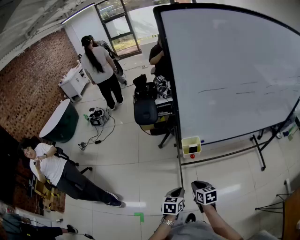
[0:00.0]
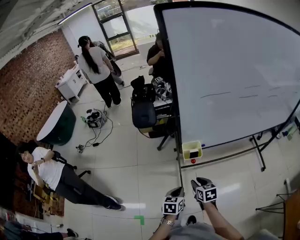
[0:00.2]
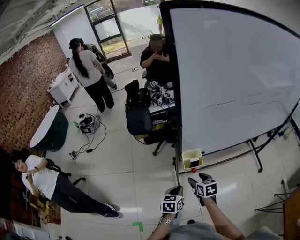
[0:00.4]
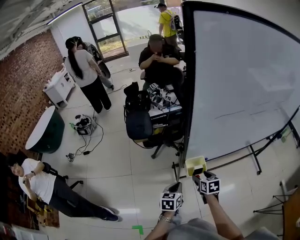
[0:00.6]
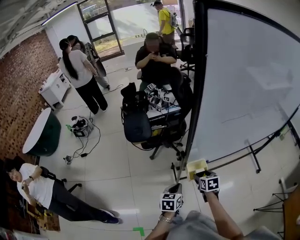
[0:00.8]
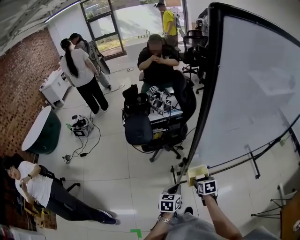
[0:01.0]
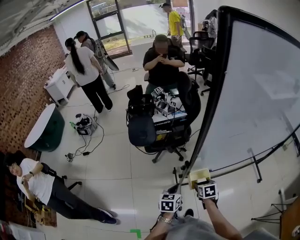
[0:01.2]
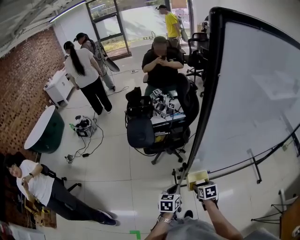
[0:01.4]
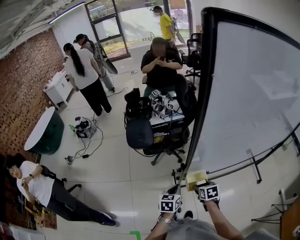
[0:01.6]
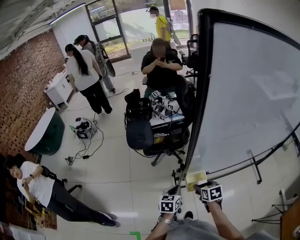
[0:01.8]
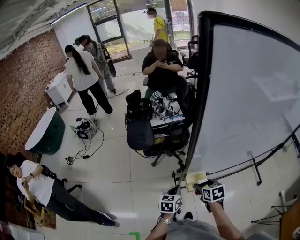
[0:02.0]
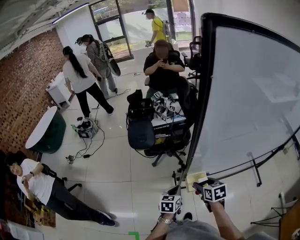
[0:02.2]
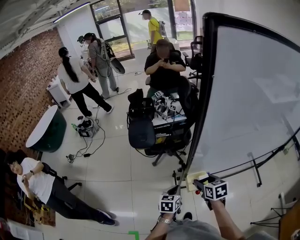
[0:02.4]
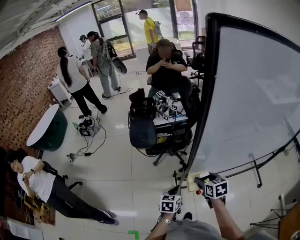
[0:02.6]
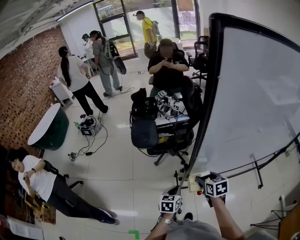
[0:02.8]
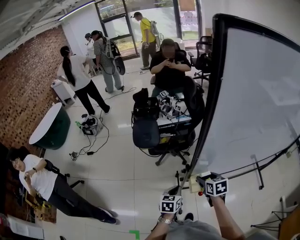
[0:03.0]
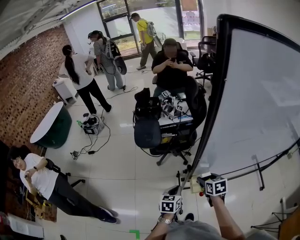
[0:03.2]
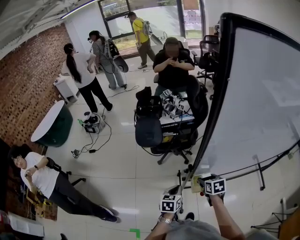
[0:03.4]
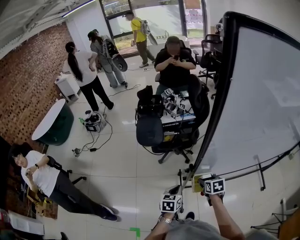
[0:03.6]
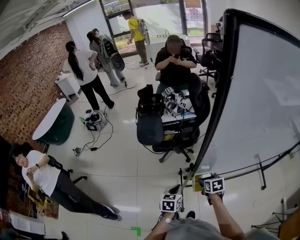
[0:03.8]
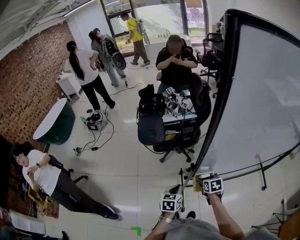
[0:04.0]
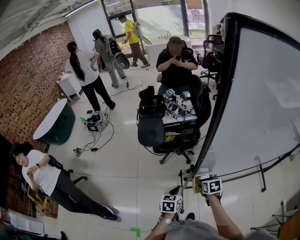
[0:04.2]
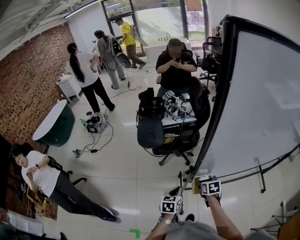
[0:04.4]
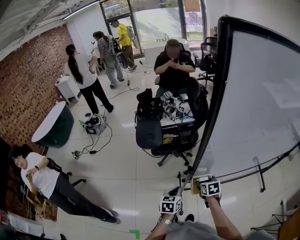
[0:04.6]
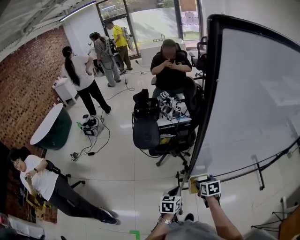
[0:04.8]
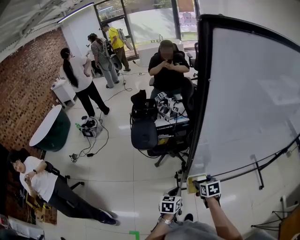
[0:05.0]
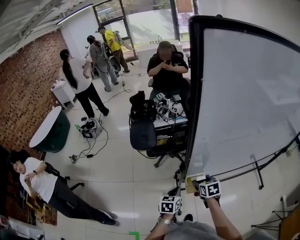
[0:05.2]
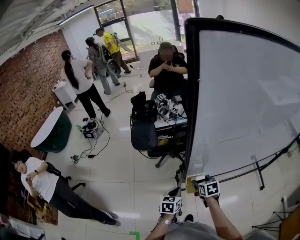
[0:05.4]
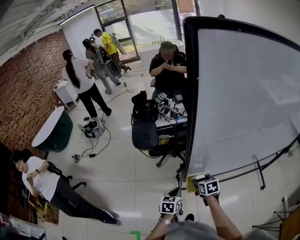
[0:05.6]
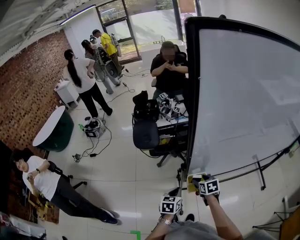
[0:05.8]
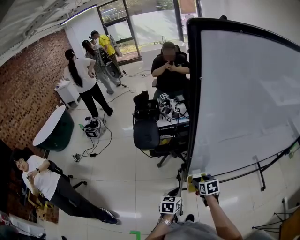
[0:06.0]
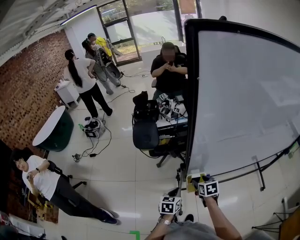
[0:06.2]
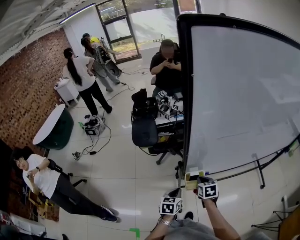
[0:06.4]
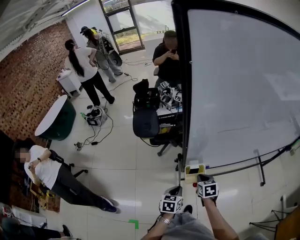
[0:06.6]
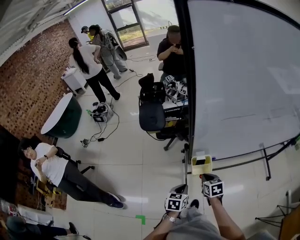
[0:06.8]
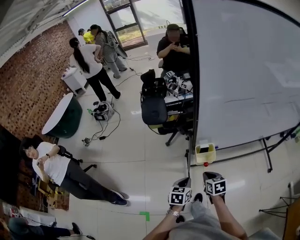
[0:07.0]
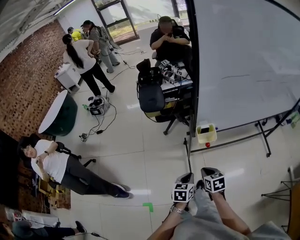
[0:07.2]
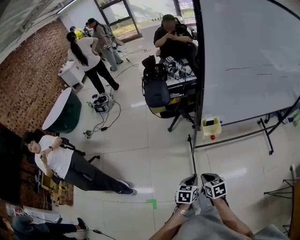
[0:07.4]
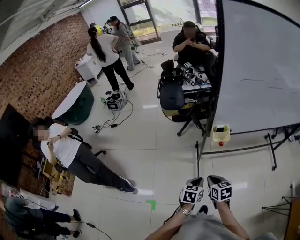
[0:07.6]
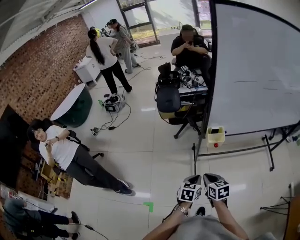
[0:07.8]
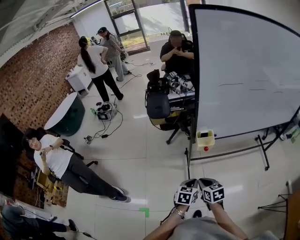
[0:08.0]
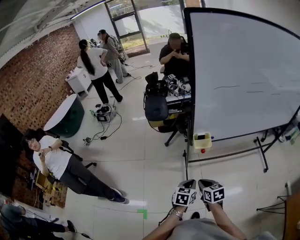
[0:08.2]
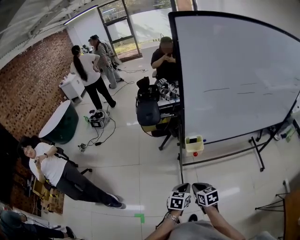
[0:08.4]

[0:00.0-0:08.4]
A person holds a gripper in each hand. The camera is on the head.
0.0 to 1.4 s: Both grippers move forward, about 25 cm. The right gripper opens.
1.4 to 2.8 s: The right gripper goes about 10 cm upward.
2.8 to 4.2 s: The right gripper goes approximately 10 cm downward.
4.2 to 5.6 s: There are only small adjustments of the grippers.
5.6 to 7.0 s: Both grippers travel together backward, about 15 cm. The right gripper closes.
7.0 to 8.4 s: Both grippers travel together backward, roughly 15 cm.

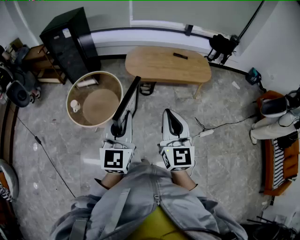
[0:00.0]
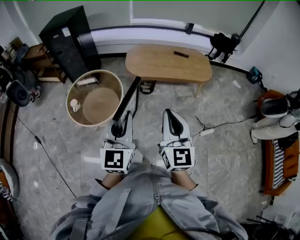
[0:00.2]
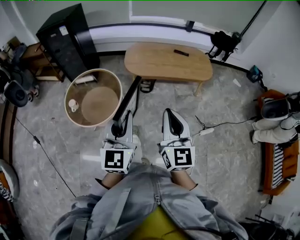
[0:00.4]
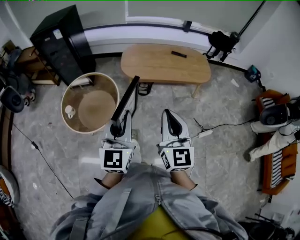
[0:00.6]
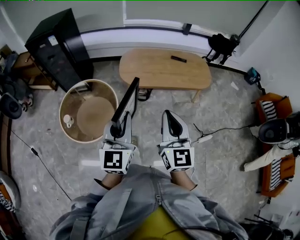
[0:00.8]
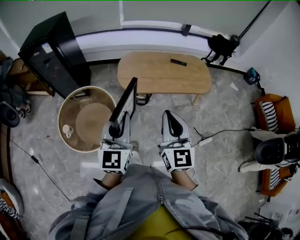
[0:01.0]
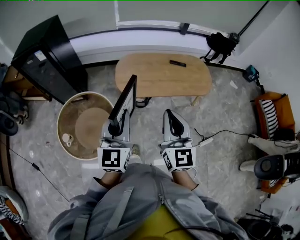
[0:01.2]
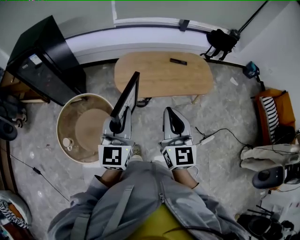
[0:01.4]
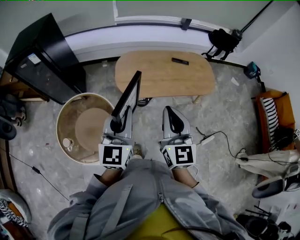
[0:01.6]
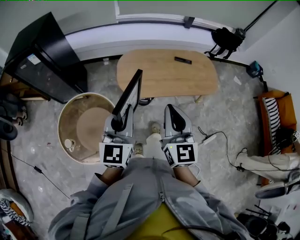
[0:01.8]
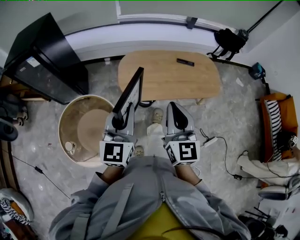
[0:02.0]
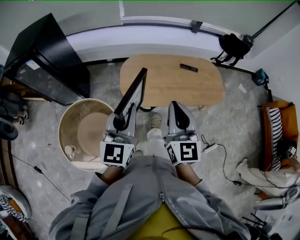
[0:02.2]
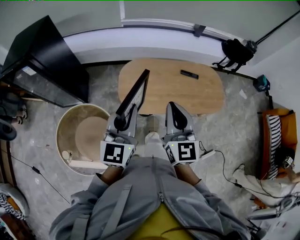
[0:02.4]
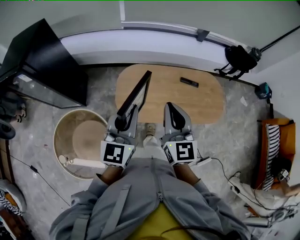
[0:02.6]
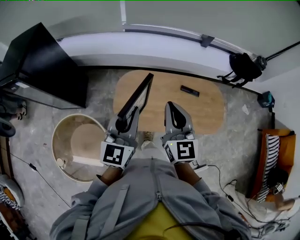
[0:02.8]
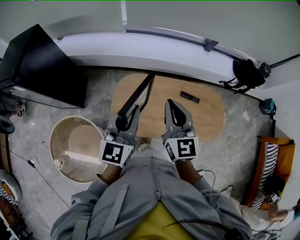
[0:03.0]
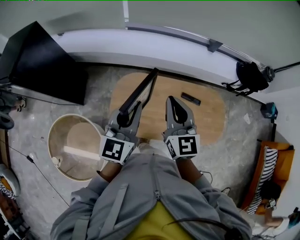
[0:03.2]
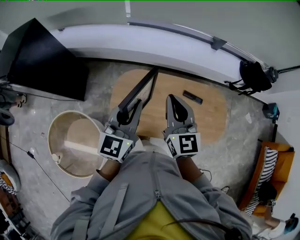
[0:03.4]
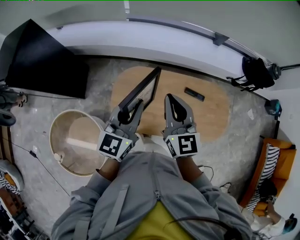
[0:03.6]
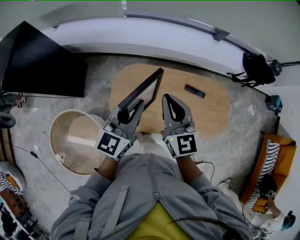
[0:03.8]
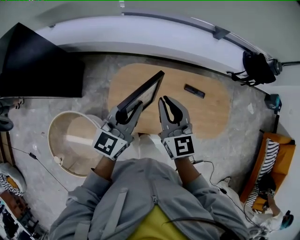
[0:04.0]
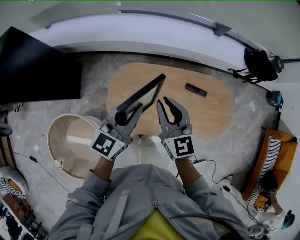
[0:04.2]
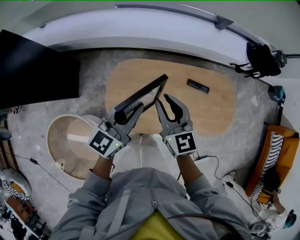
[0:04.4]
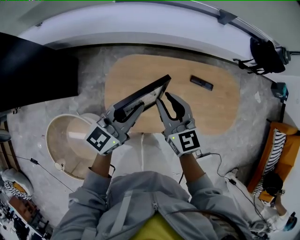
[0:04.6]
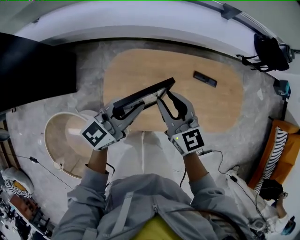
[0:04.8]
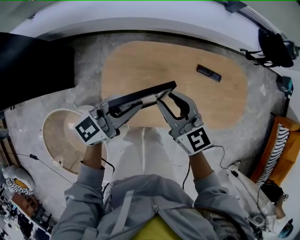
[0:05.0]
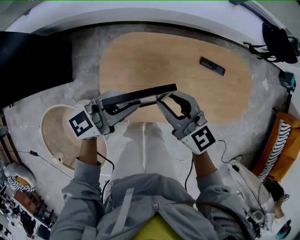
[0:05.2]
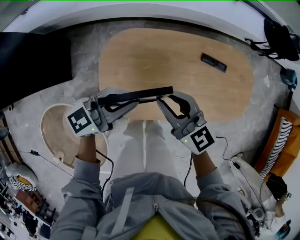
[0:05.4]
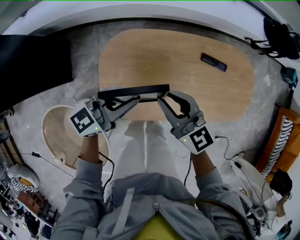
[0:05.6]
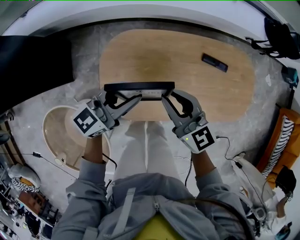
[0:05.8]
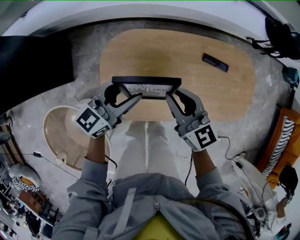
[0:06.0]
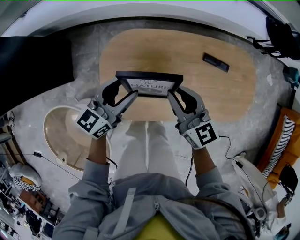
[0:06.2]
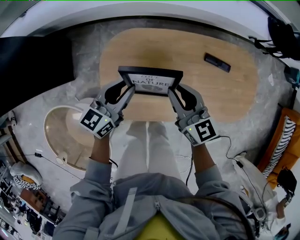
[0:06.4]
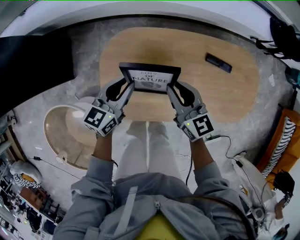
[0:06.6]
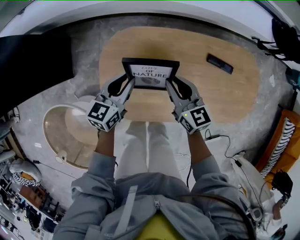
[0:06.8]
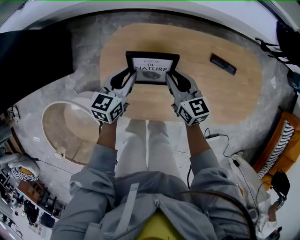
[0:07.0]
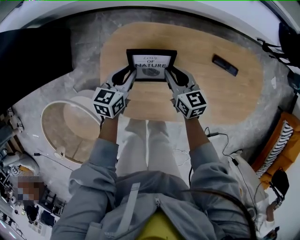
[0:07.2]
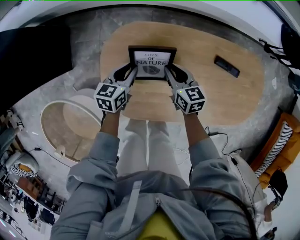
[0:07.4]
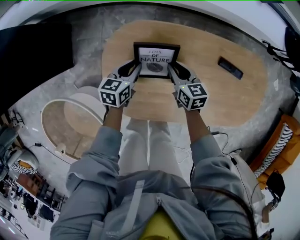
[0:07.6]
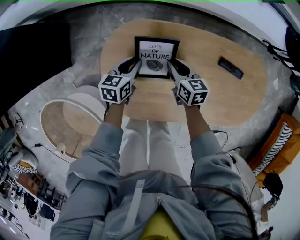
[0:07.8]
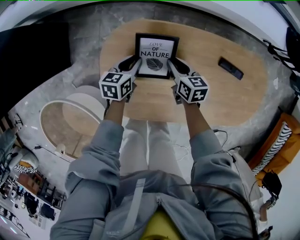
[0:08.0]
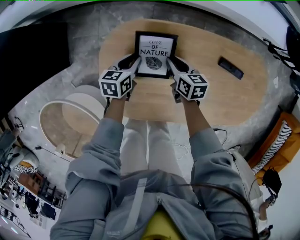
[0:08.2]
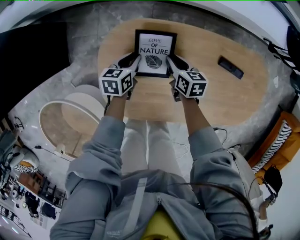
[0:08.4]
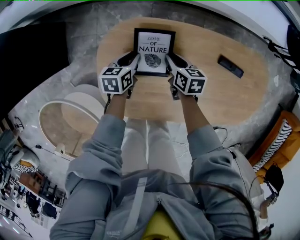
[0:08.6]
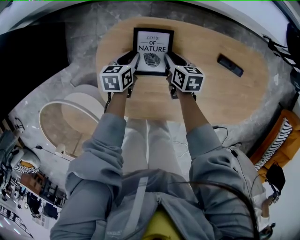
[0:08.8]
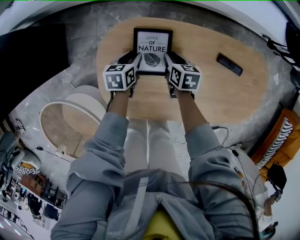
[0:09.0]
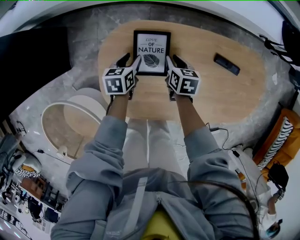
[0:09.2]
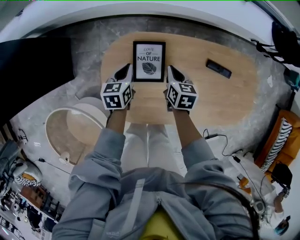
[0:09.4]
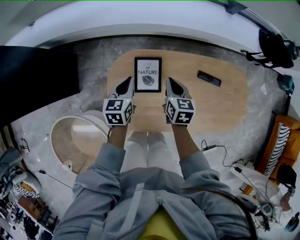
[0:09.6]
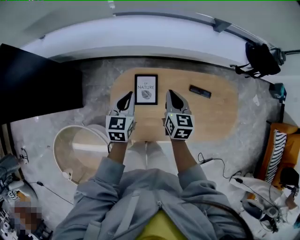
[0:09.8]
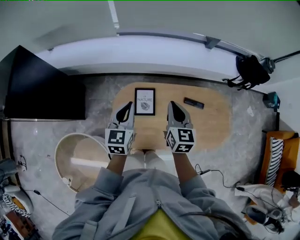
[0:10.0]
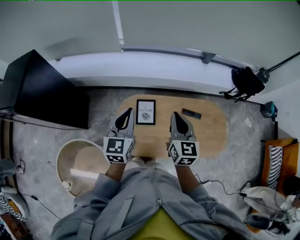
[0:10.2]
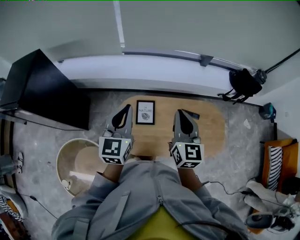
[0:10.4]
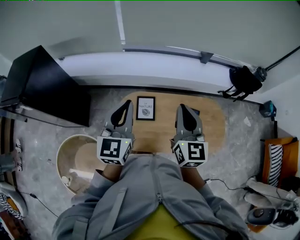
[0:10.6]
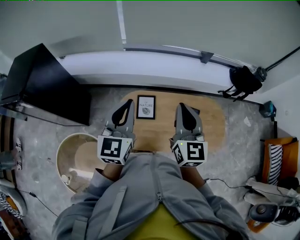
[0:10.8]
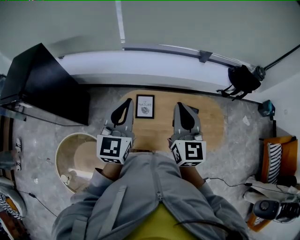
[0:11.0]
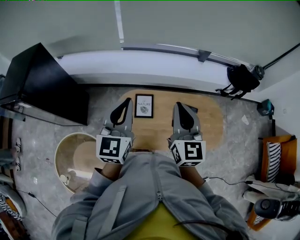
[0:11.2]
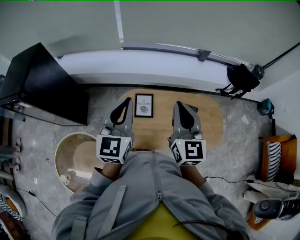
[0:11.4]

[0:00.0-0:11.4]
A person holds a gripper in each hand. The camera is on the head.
0.0 to 1.4 s: The two grippers go roughly 35 cm forward.
1.4 to 2.8 s: Both grippers move forward, approximately 40 cm.
2.8 to 4.2 s: Both grippers move forward and downward, some 20 cm.
4.2 to 5.6 s: Both grippers move downward, roughly 15 cm. The left gripper swivels approximately 30 degrees.
5.6 to 7.2 s: The grippers both shift downward by approximately 20 cm. The right gripper turns by some 20 degrees; the left gripper angles its fingers downward, by approximately 30 degrees, and opens, then closes once more.
7.2 to 8.6 s: Both grippers move downward, approximately 10 cm. The right gripper turns by approximately 20 degrees.
8.6 to 10.0 s: The grippers both shift upward by roughly 40 cm. The right gripper turns by roughly 40 degrees, and closes up. Meanwhile the left gripper turns by about 40 degrees, and closes up.
10.0 to 11.4 s: The grippers both shift upward and backward by about 25 cm. The right gripper swivels approximately 20 degrees.

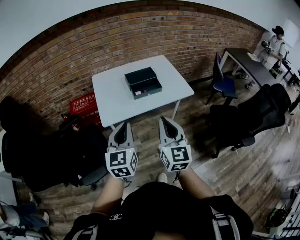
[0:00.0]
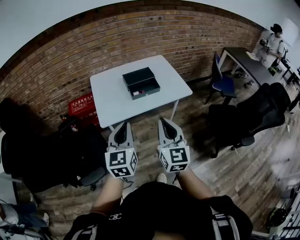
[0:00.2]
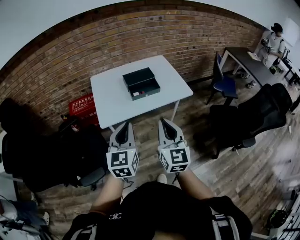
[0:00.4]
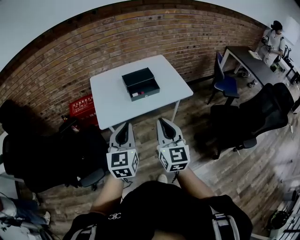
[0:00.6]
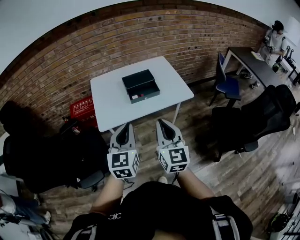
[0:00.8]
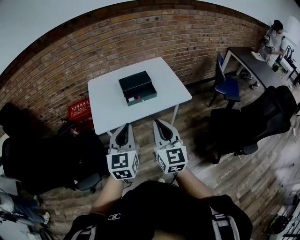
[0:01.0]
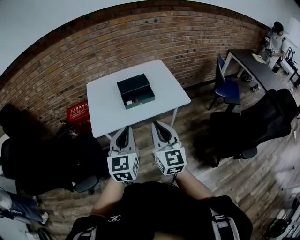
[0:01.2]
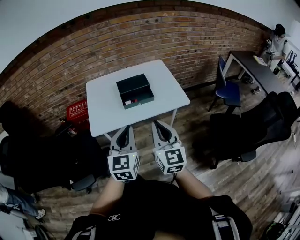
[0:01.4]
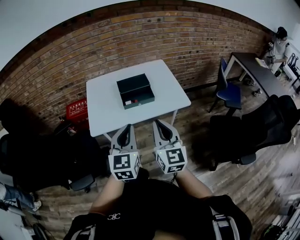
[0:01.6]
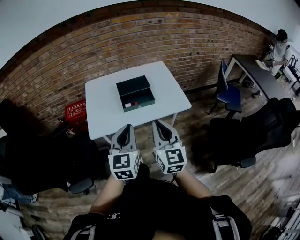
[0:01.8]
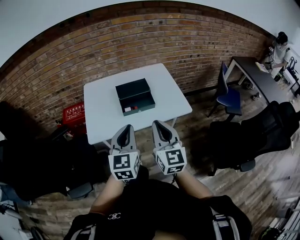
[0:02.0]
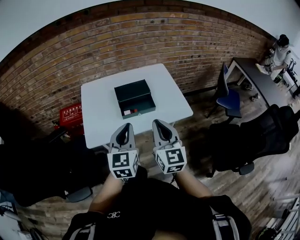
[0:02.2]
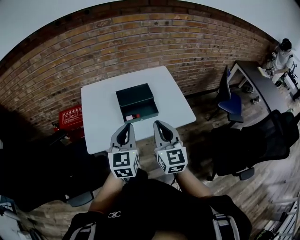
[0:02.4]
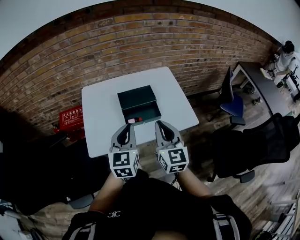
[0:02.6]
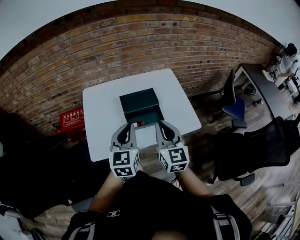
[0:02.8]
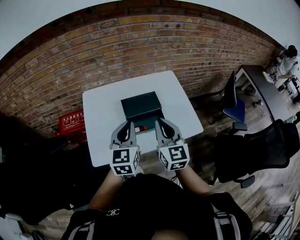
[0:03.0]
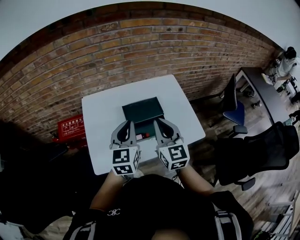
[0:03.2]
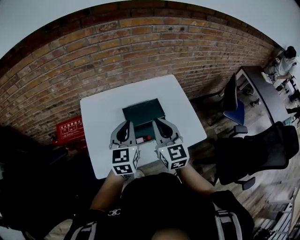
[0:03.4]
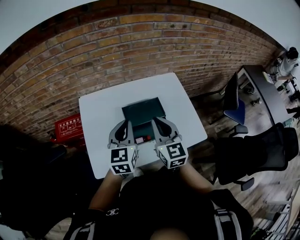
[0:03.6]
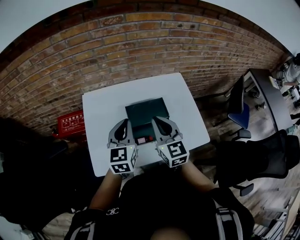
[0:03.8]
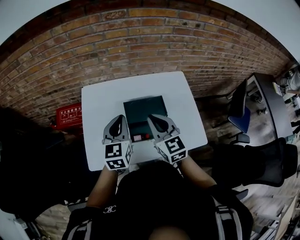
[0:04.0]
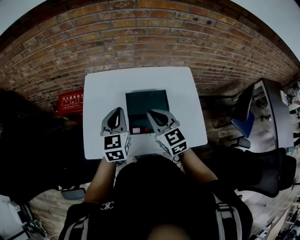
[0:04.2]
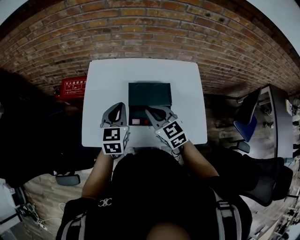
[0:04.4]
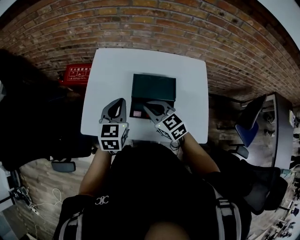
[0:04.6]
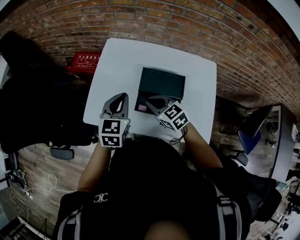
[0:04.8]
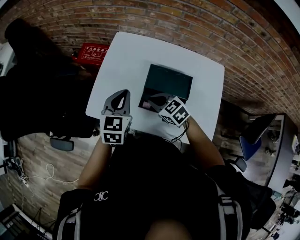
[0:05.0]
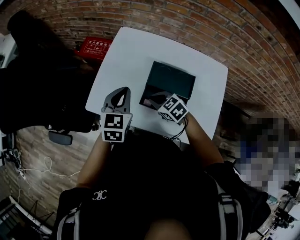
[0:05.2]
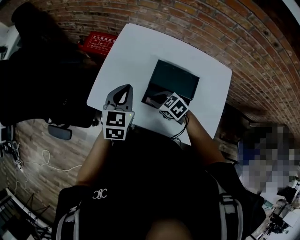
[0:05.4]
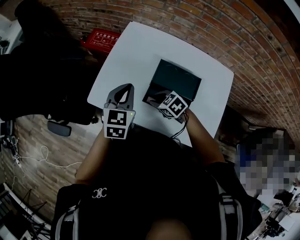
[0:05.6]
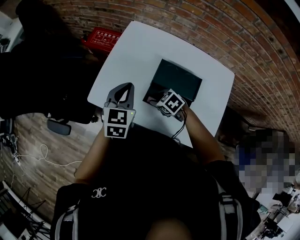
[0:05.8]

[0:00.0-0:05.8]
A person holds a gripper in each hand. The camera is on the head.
0.0 to 1.4 s: Both grippers travel together to the right and forward, some 15 cm.
1.4 to 2.8 s: Both grippers move forward, approximately 25 cm.
2.8 to 4.4 s: The right gripper shifts by some 20 cm, and swivels approximately 40 degrees. Meanwhile the left gripper ends up approximately 15 cm from where it was.
4.4 to 5.8 s: The right gripper shifts about 20 cm downward, points its fingers roughly 30 degrees further downward, and opens up, while the left gripper moves approximately 5 cm.
